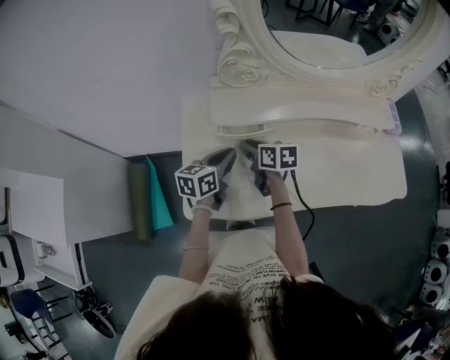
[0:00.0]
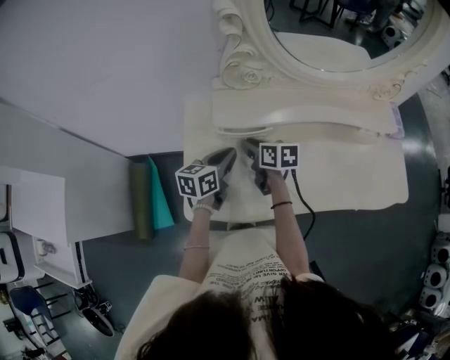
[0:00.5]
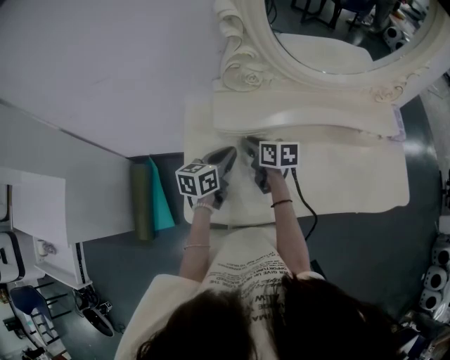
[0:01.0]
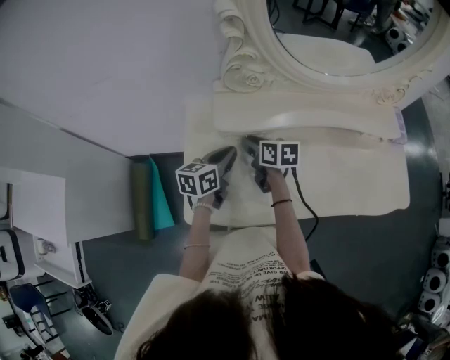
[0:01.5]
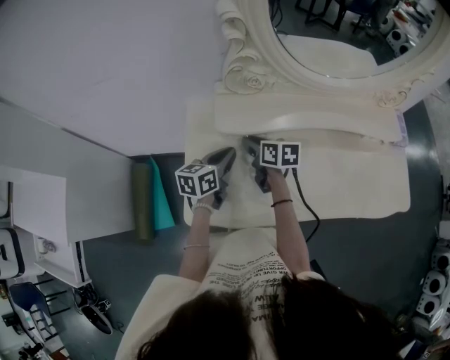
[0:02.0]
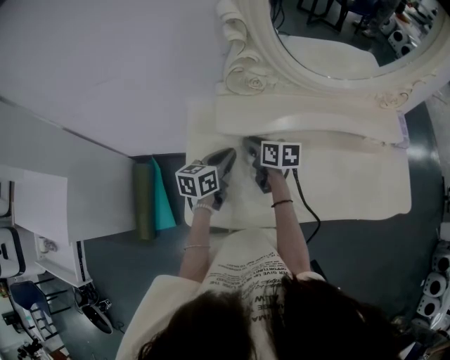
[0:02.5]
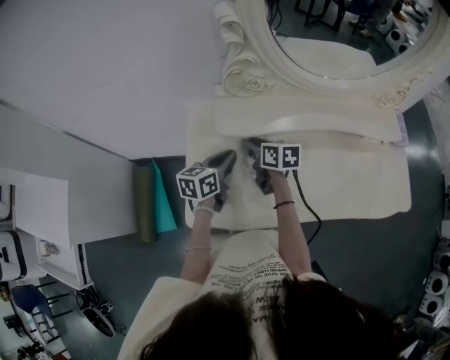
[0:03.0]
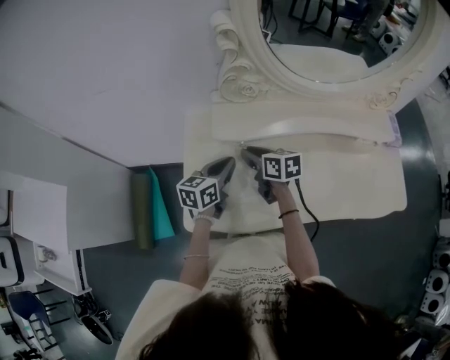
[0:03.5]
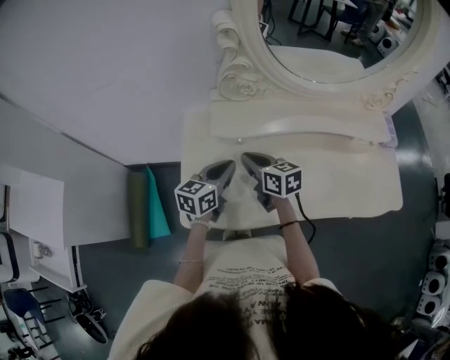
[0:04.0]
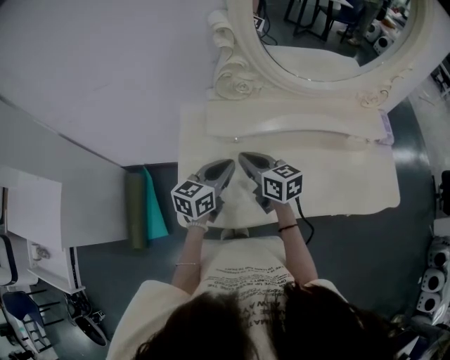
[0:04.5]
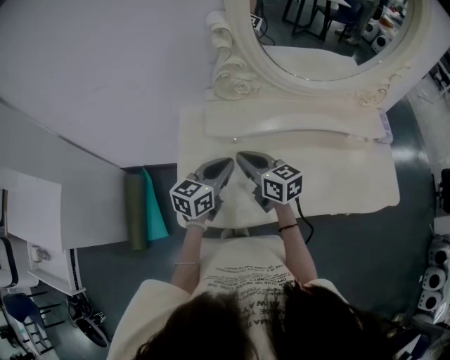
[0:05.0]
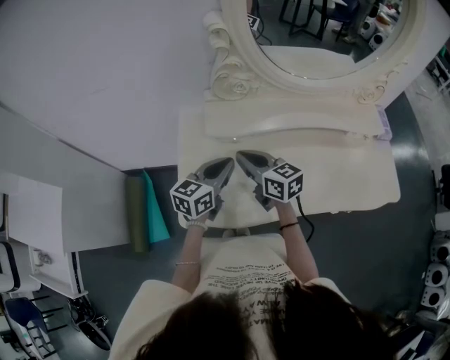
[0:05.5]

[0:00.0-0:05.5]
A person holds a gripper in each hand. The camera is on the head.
0:00.0 to 0:03.5: The grippers make only small movements.
0:03.5 to 0:05.5: The left gripper ends up roughly 5 cm from where it was. The right gripper moves upward and backward, some 10 cm, turns by roughly 20 degrees, and closes its fingers.

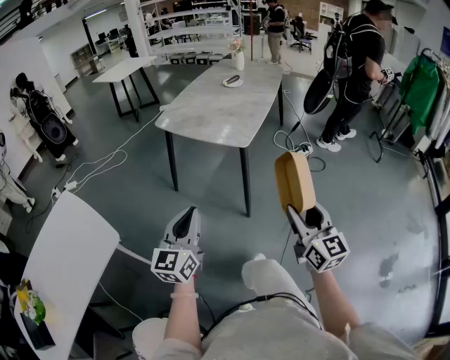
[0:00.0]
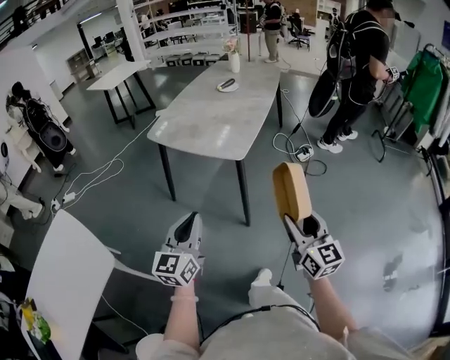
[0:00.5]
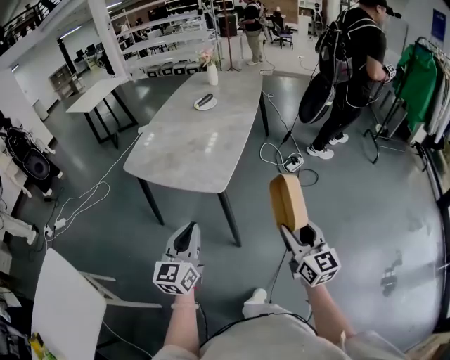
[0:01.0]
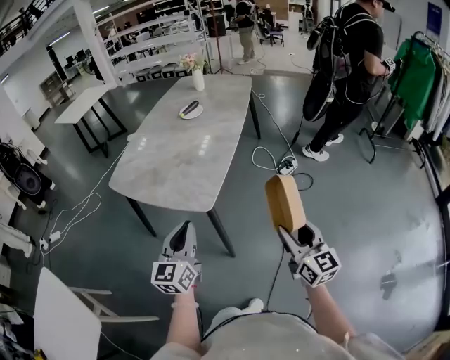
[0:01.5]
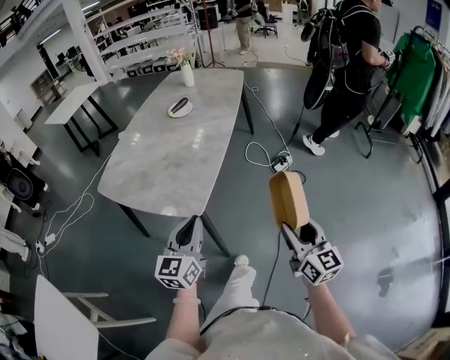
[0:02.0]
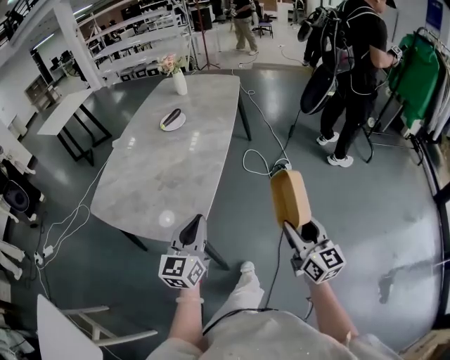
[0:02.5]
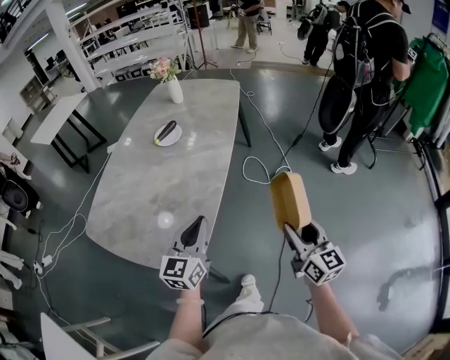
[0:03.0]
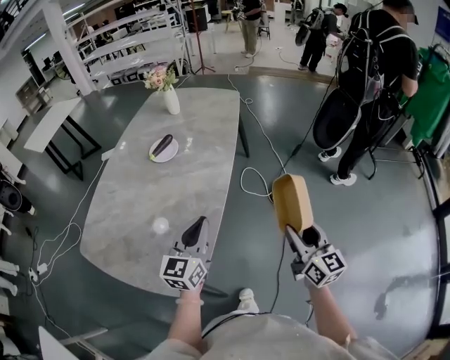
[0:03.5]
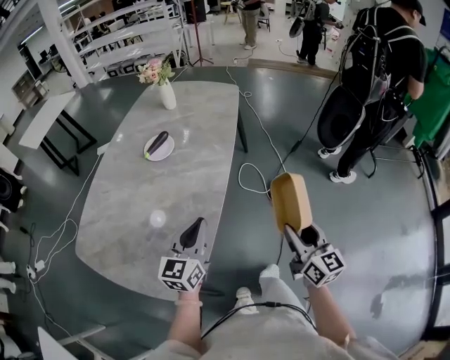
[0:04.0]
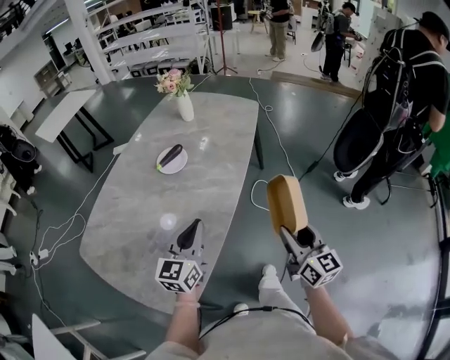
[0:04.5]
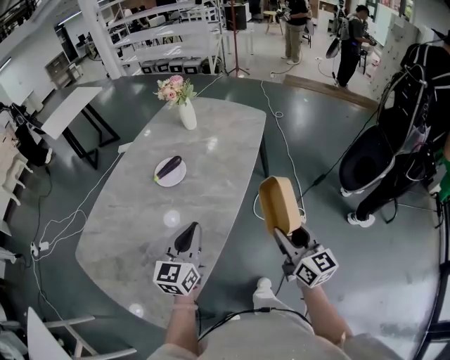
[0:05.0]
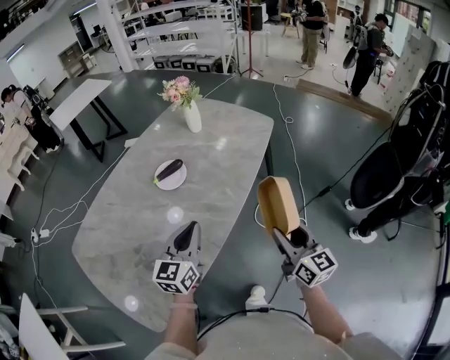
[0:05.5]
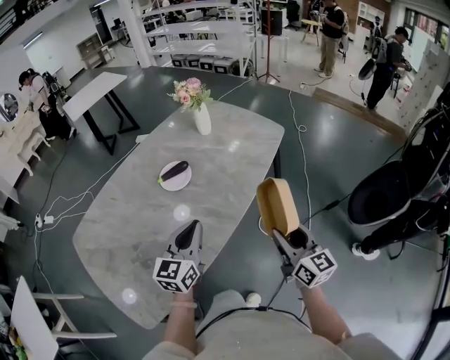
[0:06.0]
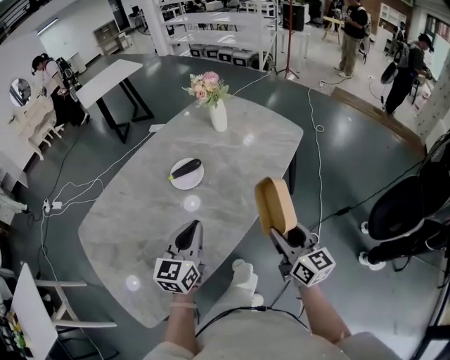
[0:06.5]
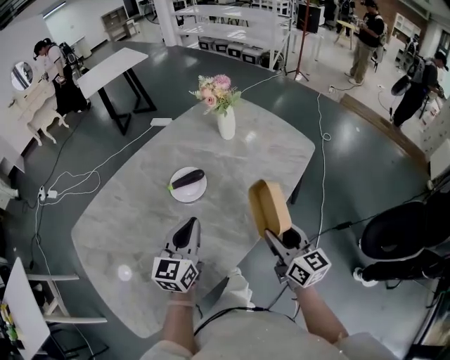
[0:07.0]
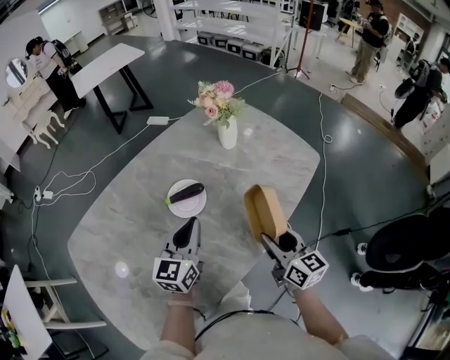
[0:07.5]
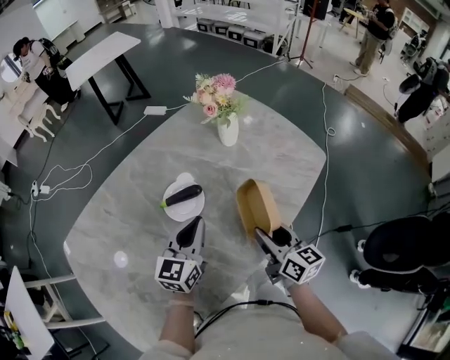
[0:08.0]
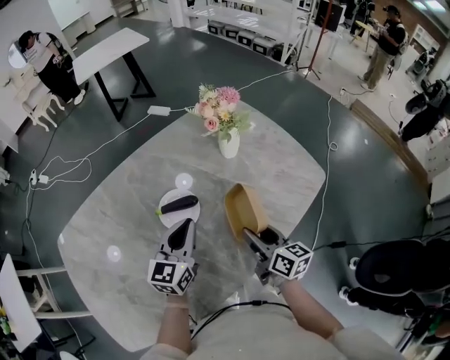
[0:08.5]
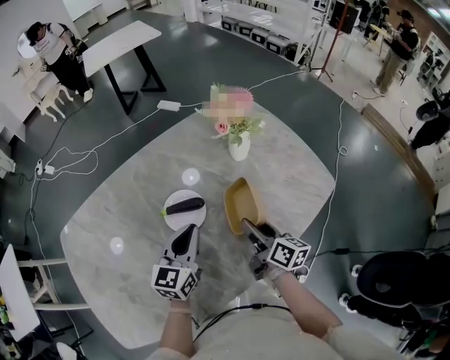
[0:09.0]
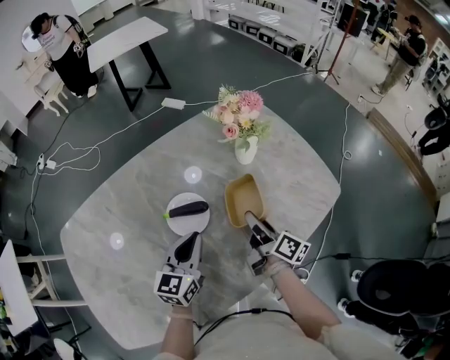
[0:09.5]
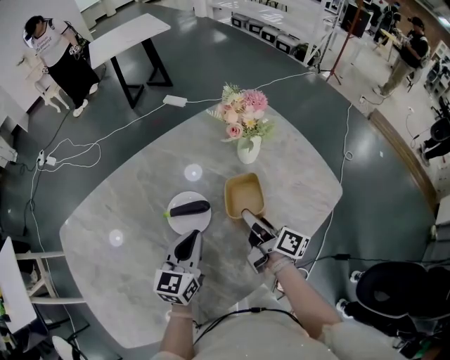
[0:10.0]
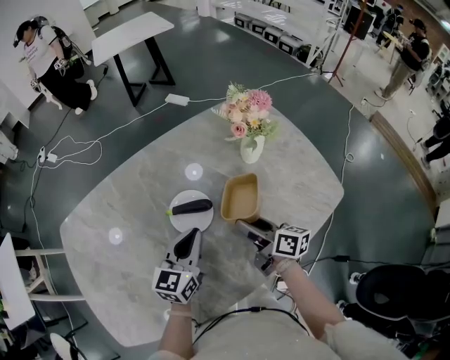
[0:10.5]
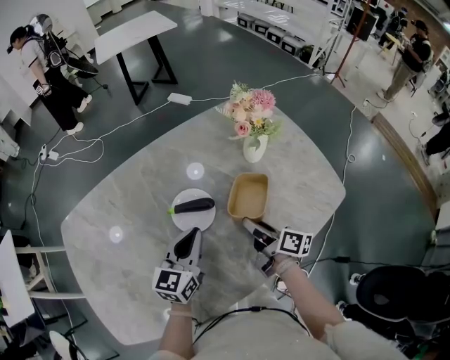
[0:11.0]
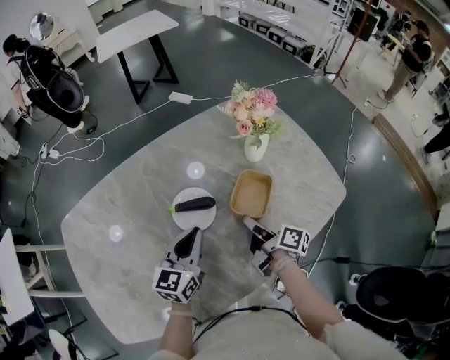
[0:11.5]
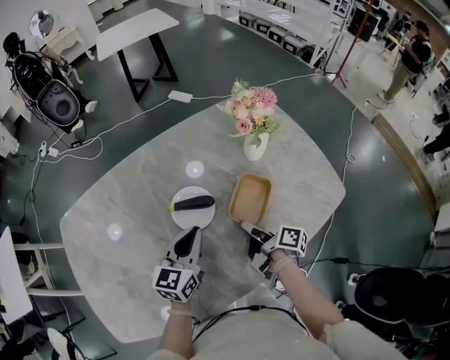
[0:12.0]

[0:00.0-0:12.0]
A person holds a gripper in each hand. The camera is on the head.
0:00.0 to 0:02.0: Both grippers travel together forward and to the right, approximately 40 cm.
0:02.0 to 0:04.0: The grippers both shift forward by approximately 30 cm.
0:04.0 to 0:06.0: The right gripper changes place by roughly 30 cm, and turns by roughly 30 degrees. The left gripper shifts by about 20 cm, and changes its angle by some 20 degrees.
0:06.0 to 0:08.0: Both grippers travel together forward, roughly 25 cm. The right gripper changes its angle by about 20 degrees.
0:08.0 to 0:10.0: The right gripper heads forward, covering roughly 15 cm, and swivels roughly 40 degrees.
0:10.0 to 0:12.0: The right gripper travels downward by approximately 5 cm, and turns by approximately 30 degrees.

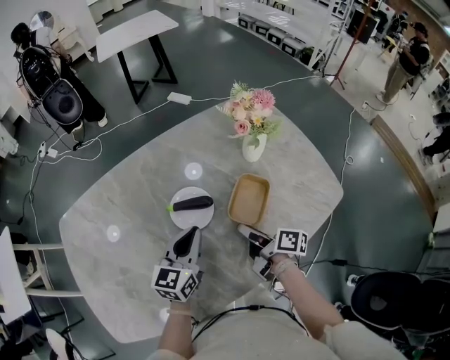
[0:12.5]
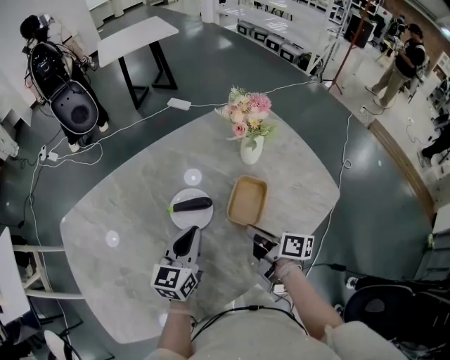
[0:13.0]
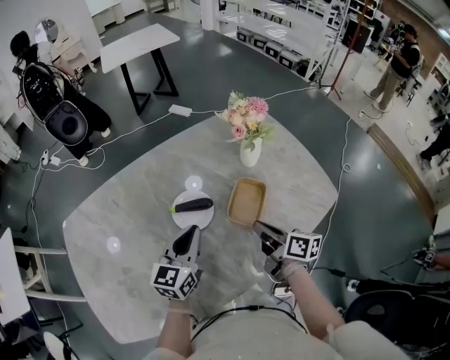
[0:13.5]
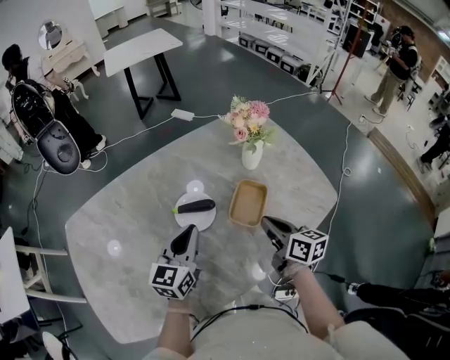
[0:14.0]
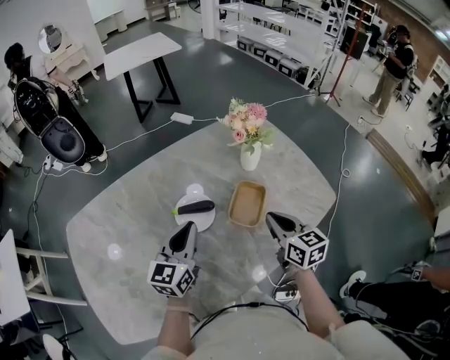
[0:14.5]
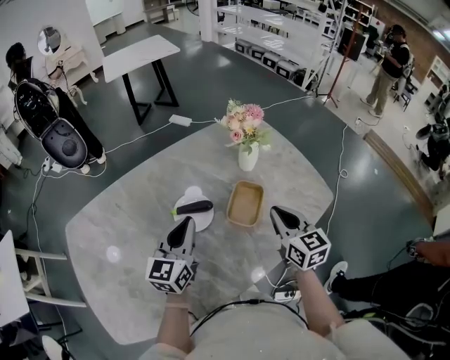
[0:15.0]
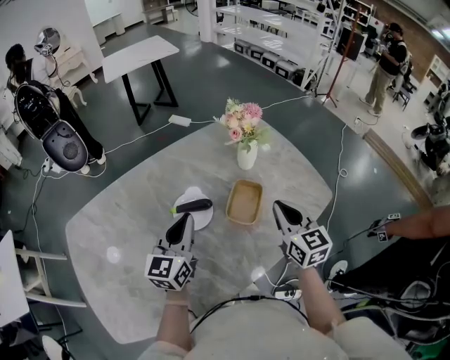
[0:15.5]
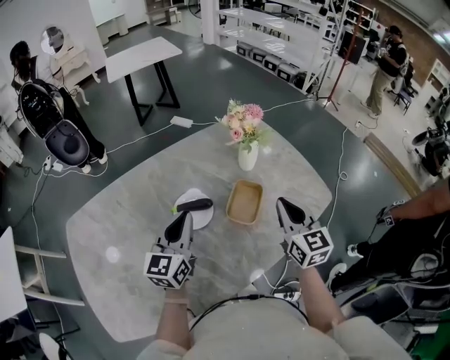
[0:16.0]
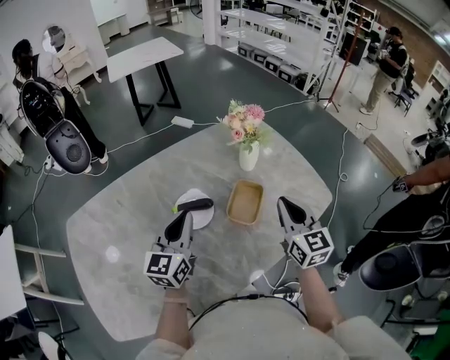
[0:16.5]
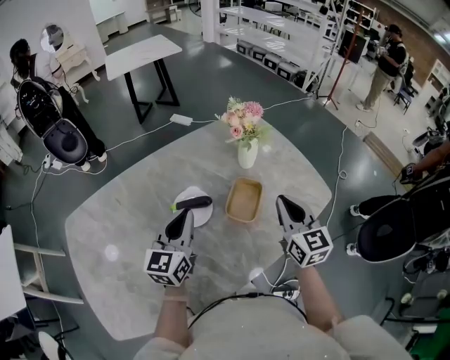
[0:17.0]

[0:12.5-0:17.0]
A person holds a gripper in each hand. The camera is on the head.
0:12.5 to 0:14.5: The left gripper moves upward, roughly 5 cm. The right gripper shifts some 15 cm upward and to the right, twists about 60 degrees counterclockwise, seen from behind, and closes up.
0:14.5 to 0:17.0: The right gripper shifts about 5 cm upward, and changes its angle by approximately 20 degrees.

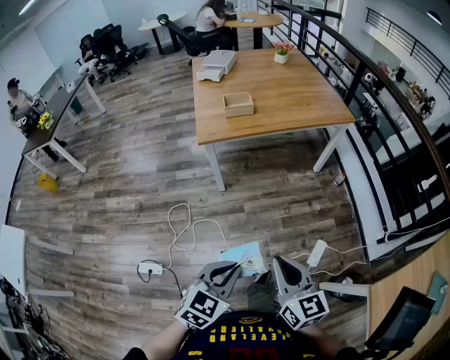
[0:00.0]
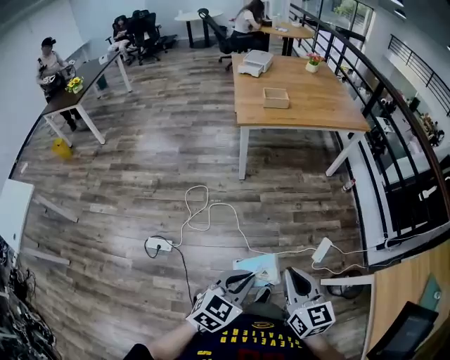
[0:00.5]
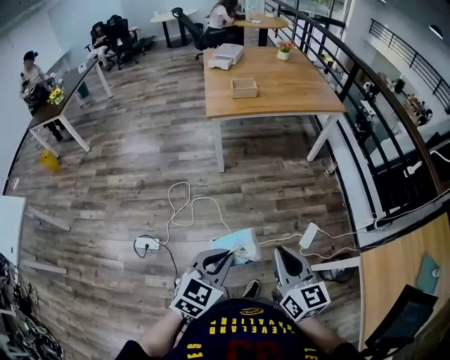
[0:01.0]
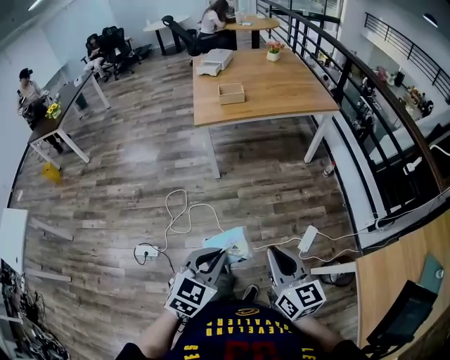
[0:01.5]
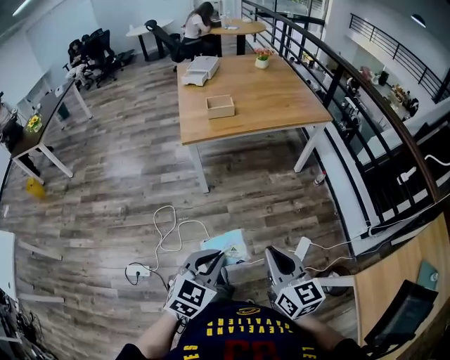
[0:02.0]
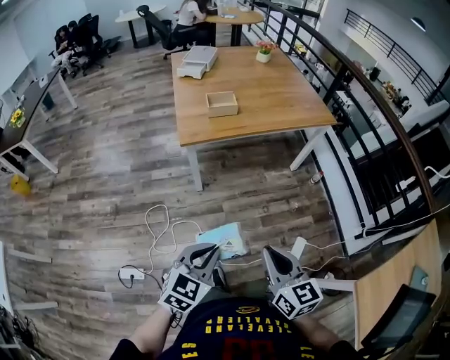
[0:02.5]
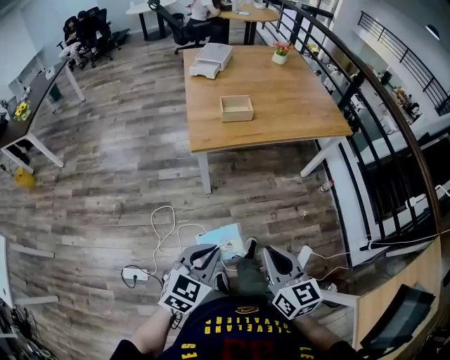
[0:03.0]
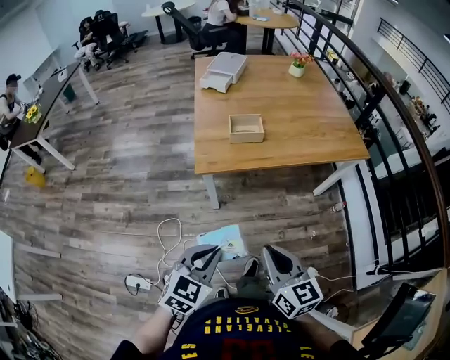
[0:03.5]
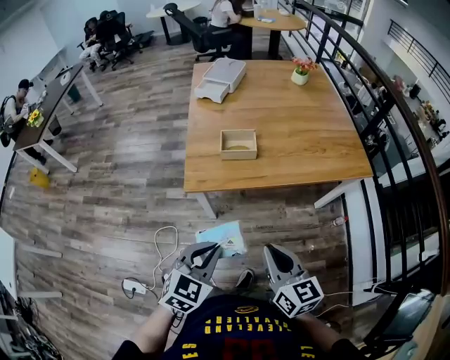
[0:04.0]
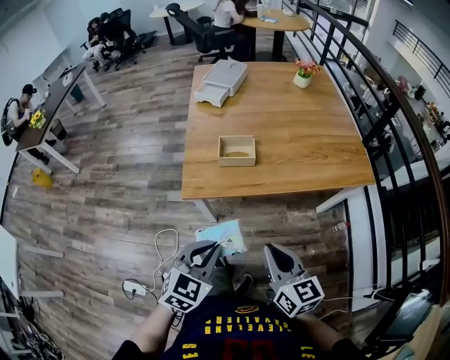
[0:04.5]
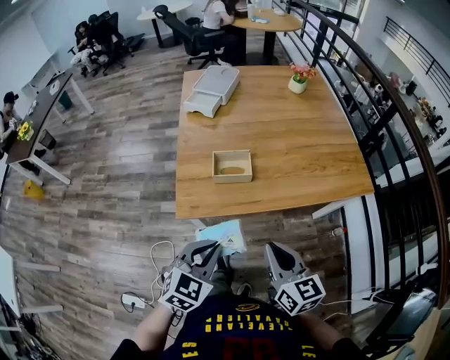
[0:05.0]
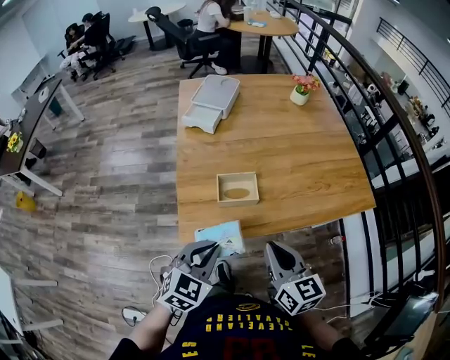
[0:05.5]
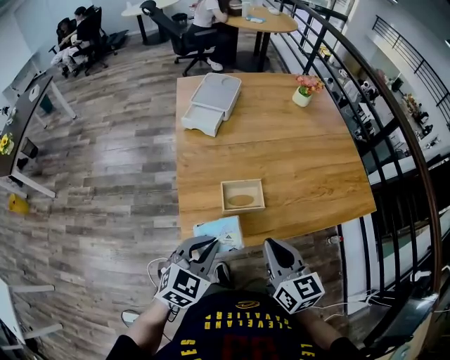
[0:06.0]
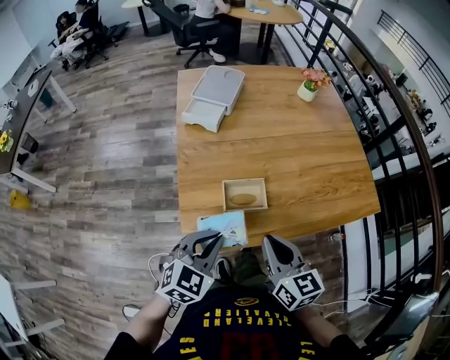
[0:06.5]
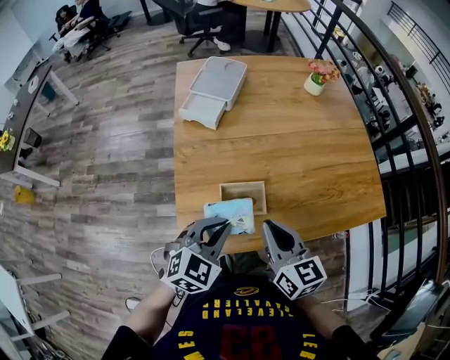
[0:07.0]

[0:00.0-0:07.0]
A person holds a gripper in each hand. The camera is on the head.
0:00.0 to 0:02.0: The right gripper goes backward and returns, about 20 cm each way, while the left gripper goes backward and returns, roughly 20 cm each way.
0:02.0 to 0:03.5: The grippers both shift forward and to the left by roughly 30 cm.
0:03.5 to 0:05.0: The two grippers go some 20 cm forward.
0:05.0 to 0:07.0: Both grippers move forward, some 25 cm.
